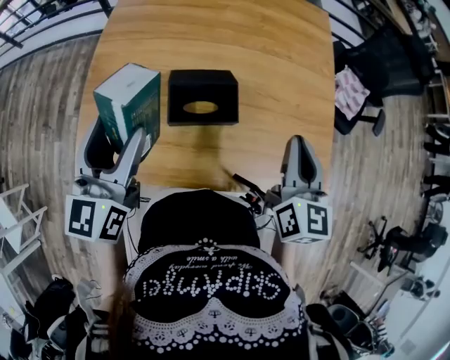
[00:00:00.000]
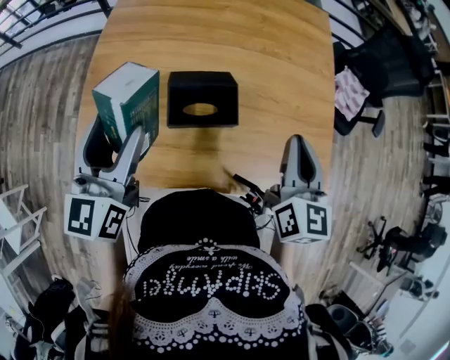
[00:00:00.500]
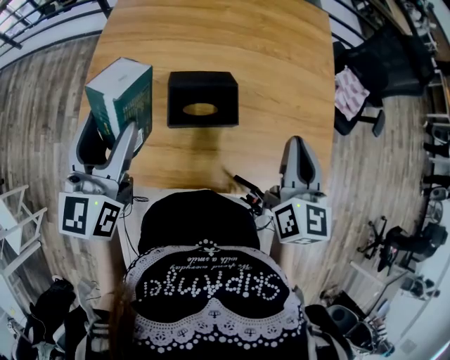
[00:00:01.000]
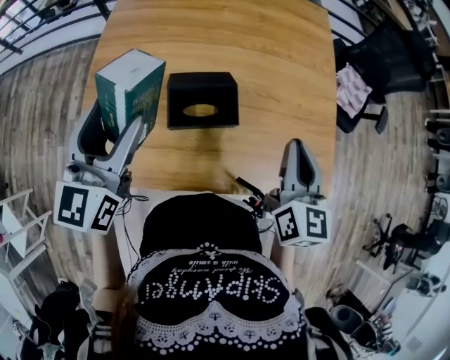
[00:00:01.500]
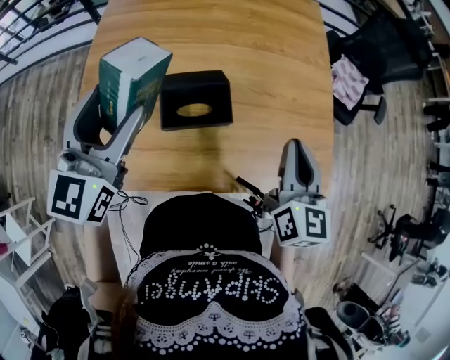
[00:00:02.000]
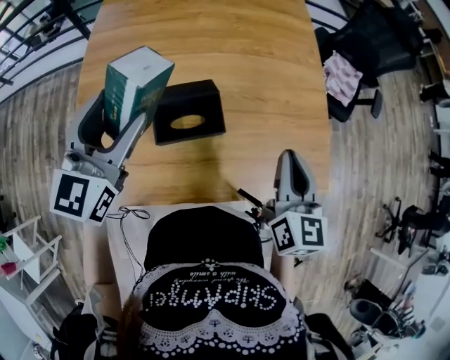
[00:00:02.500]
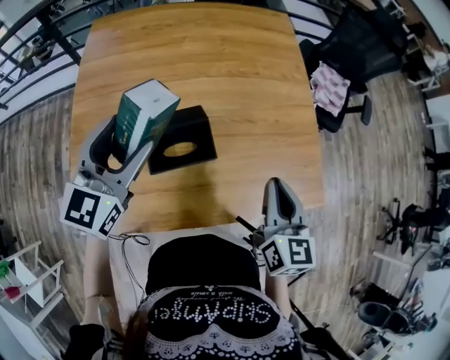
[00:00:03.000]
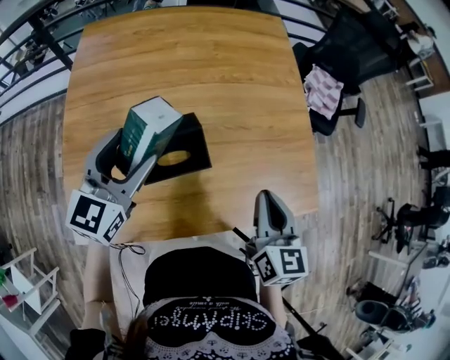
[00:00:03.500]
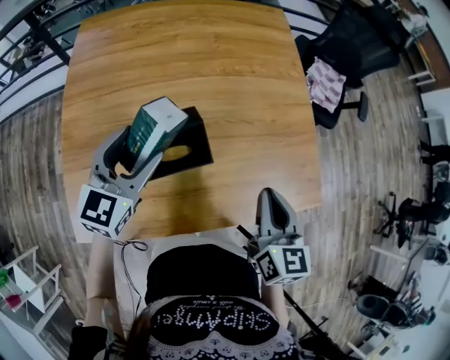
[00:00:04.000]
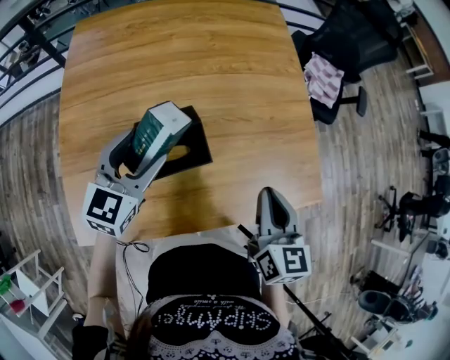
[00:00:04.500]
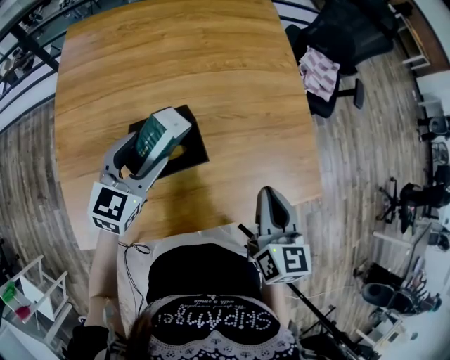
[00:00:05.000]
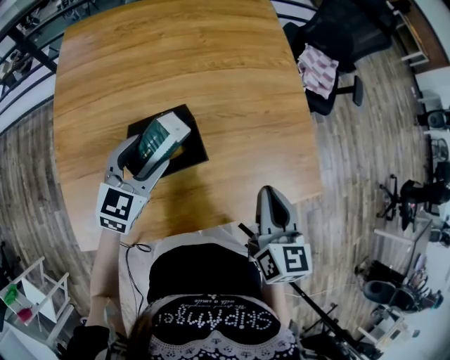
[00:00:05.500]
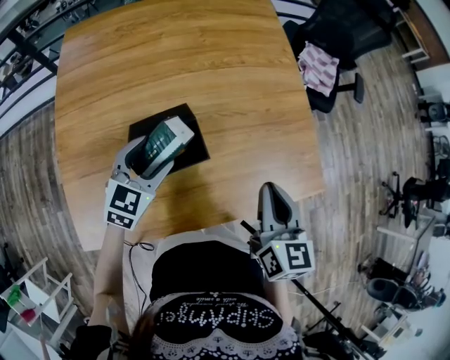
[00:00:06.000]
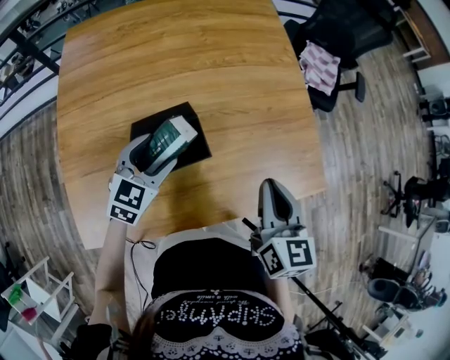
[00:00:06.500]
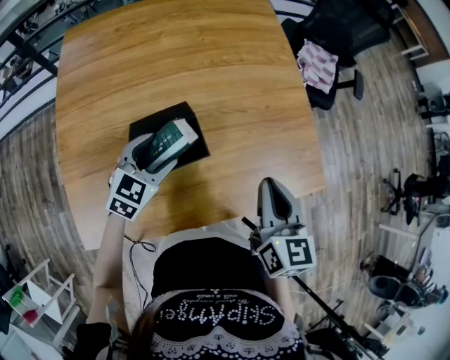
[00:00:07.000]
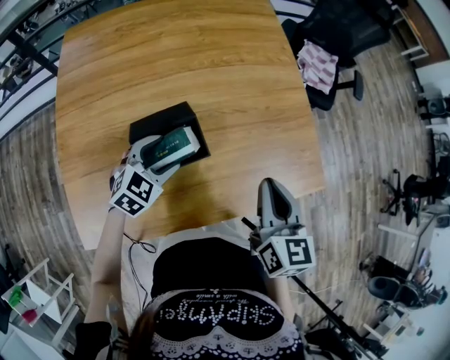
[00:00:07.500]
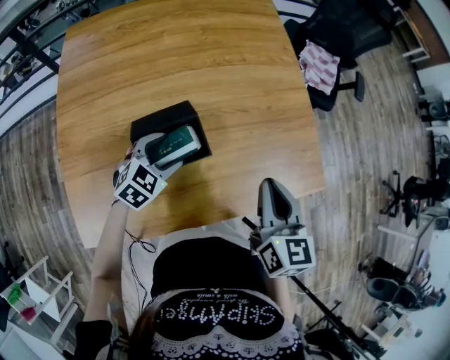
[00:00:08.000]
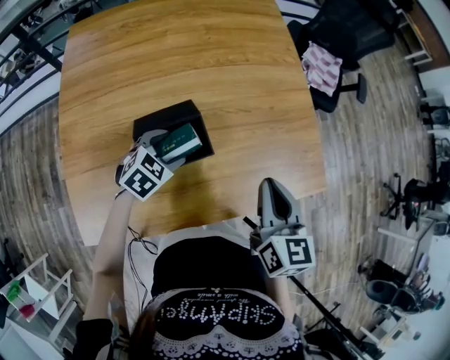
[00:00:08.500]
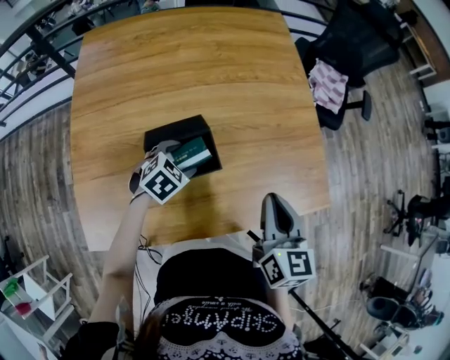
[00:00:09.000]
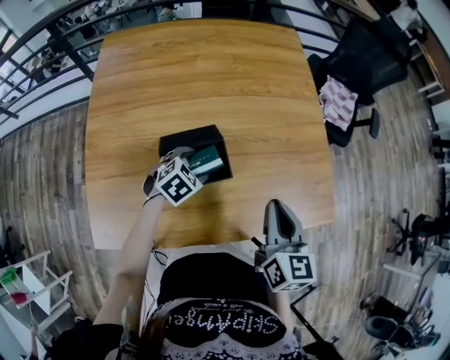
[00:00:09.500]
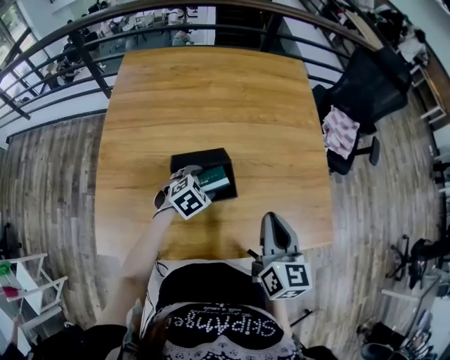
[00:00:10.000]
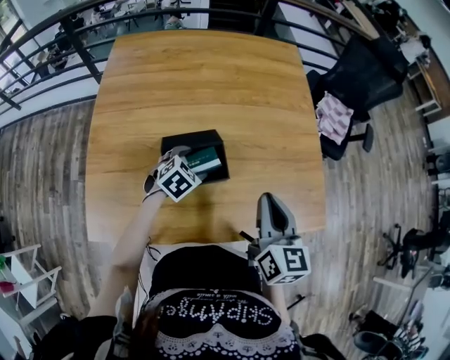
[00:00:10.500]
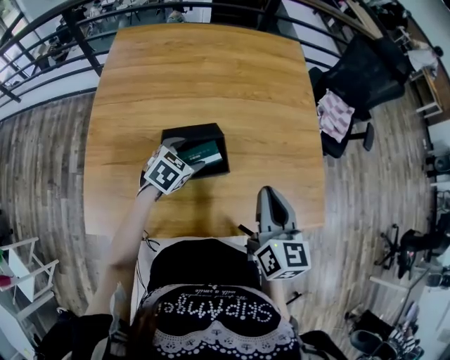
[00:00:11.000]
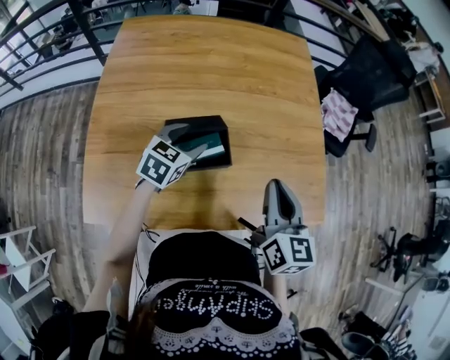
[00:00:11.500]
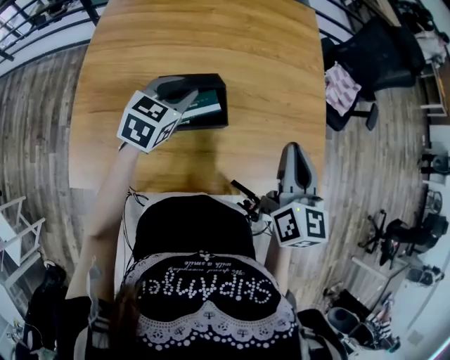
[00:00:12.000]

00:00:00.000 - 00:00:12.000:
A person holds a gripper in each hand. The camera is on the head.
00:00:00.000 - 00:00:02.000: The left gripper changes place by roughly 5 cm.
00:00:02.000 - 00:00:04.000: The left gripper goes some 15 cm downward, forward and to the right, while the right gripper shifts about 5 cm downward.
00:00:04.000 - 00:00:06.000: The left gripper heads downward, covering about 10 cm.
00:00:06.000 - 00:00:08.000: The left gripper is displaced downward by about 5 cm.
00:00:08.000 - 00:00:10.000: The grippers make only small movements.
00:00:10.000 - 00:00:12.000: The left gripper goes some 15 cm upward, rotates about 30 degrees, and closes. The right gripper ends up some 5 cm from where it was.

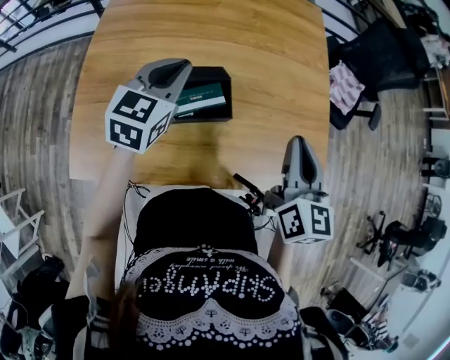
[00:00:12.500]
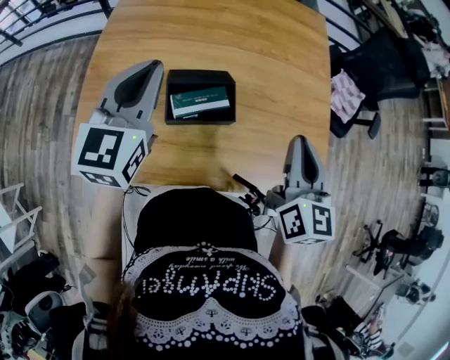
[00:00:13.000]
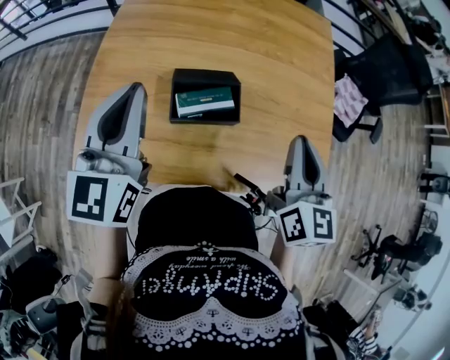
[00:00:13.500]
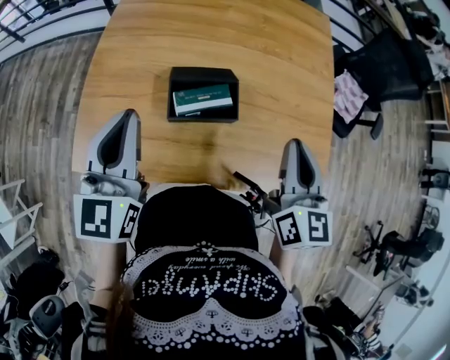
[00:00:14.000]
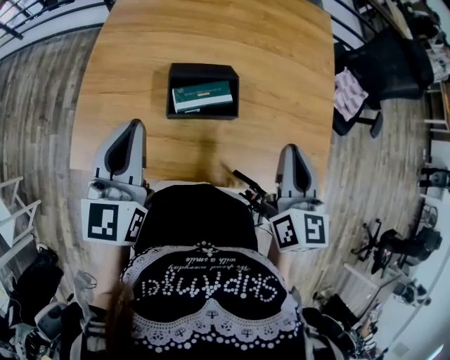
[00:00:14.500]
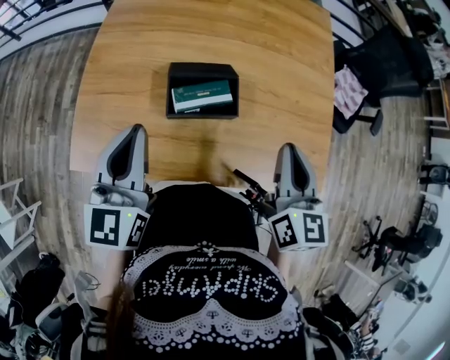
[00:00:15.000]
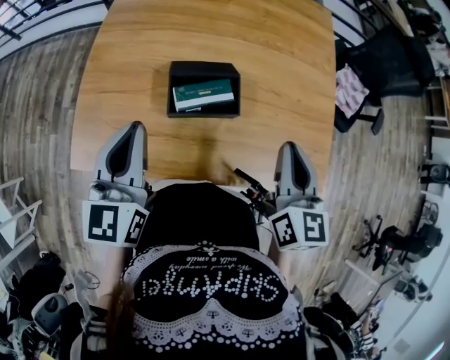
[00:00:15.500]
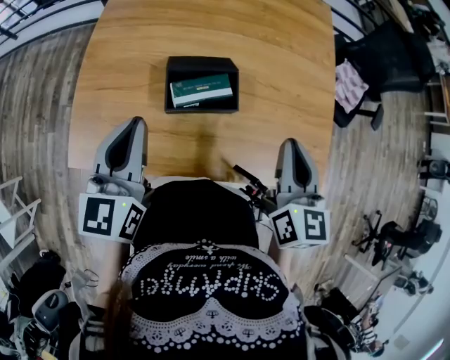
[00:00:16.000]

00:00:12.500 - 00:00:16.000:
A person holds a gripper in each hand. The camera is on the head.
00:00:12.500 - 00:00:14.500: The left gripper goes approximately 15 cm backward and to the left, and rotates some 30 degrees.
00:00:14.500 - 00:00:16.000: The grippers stay close to where they were, moving slightly.

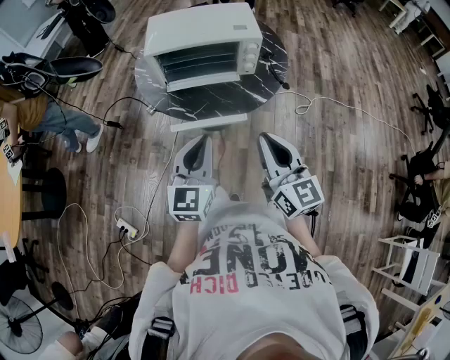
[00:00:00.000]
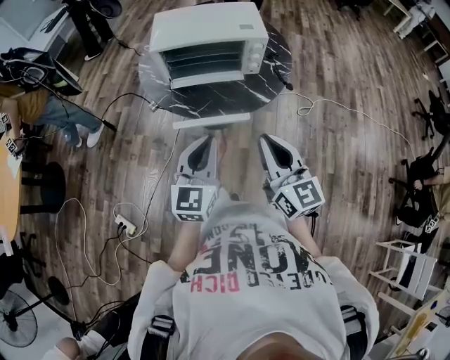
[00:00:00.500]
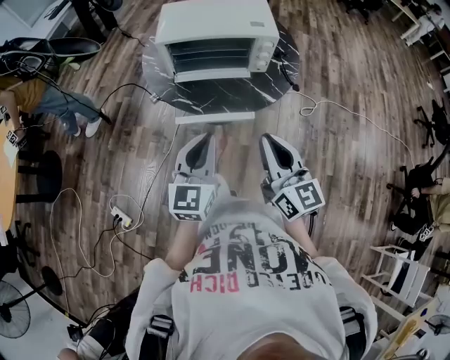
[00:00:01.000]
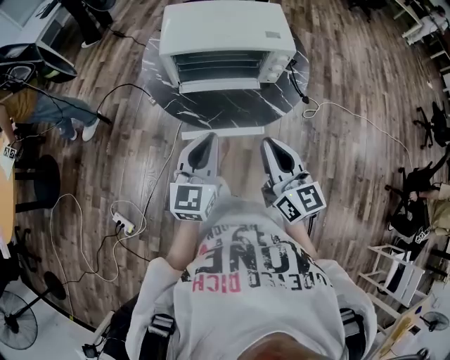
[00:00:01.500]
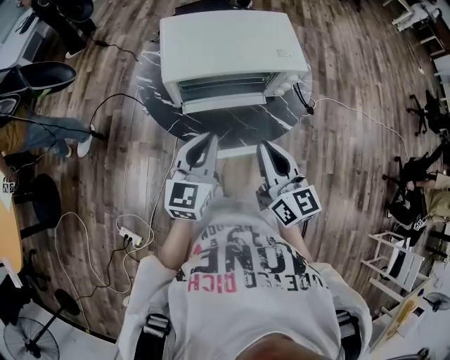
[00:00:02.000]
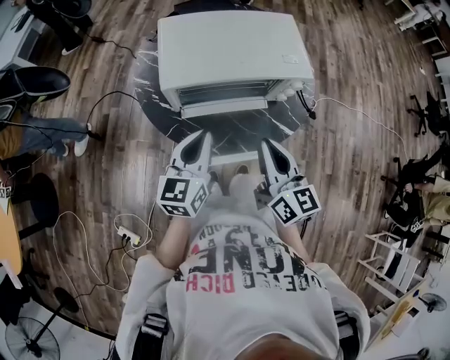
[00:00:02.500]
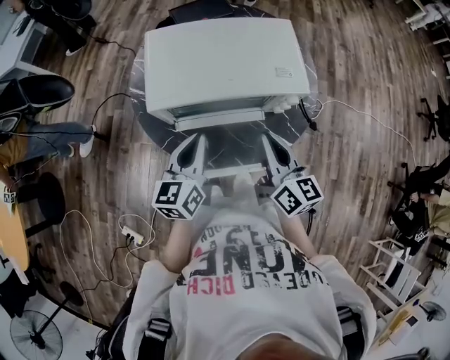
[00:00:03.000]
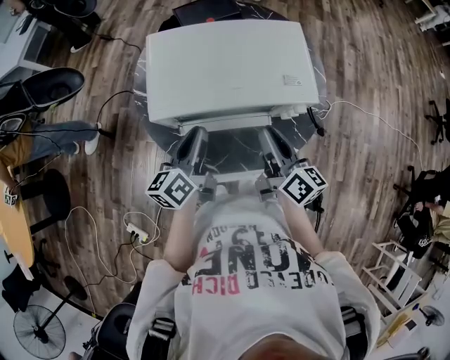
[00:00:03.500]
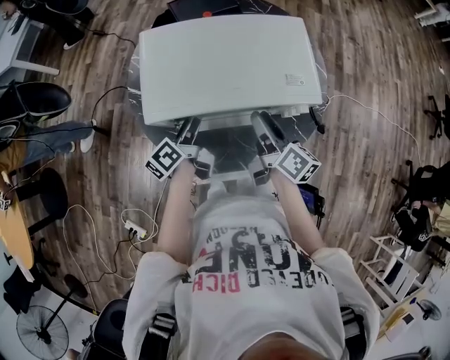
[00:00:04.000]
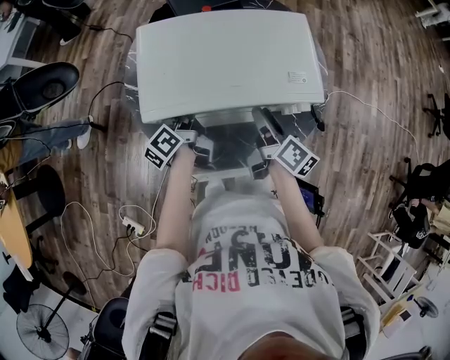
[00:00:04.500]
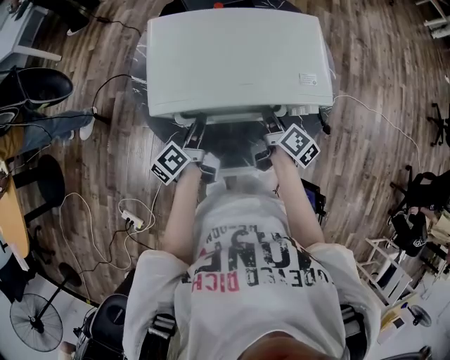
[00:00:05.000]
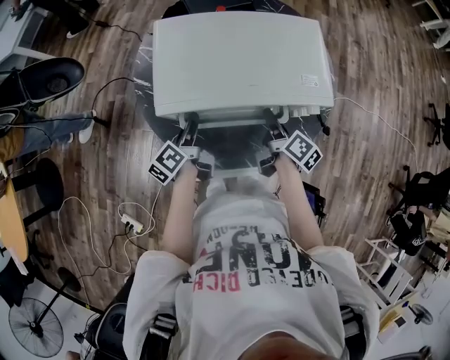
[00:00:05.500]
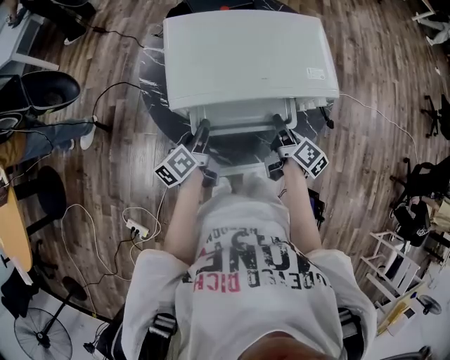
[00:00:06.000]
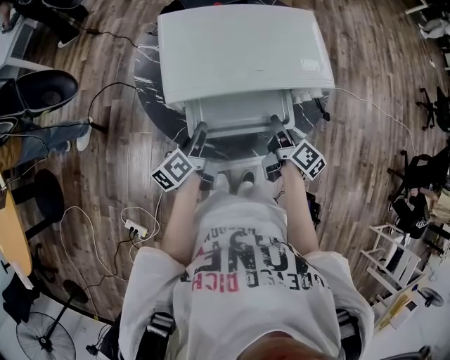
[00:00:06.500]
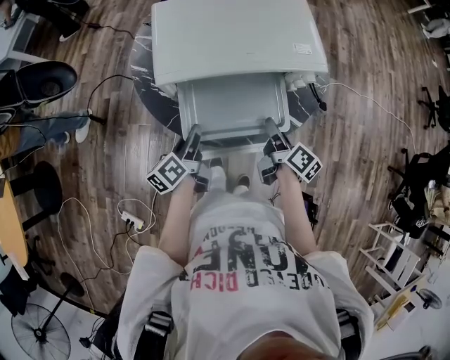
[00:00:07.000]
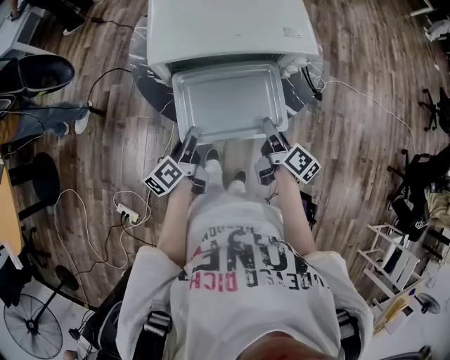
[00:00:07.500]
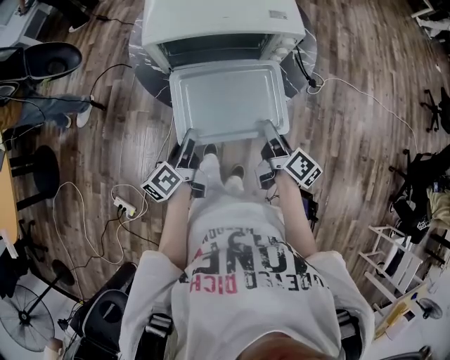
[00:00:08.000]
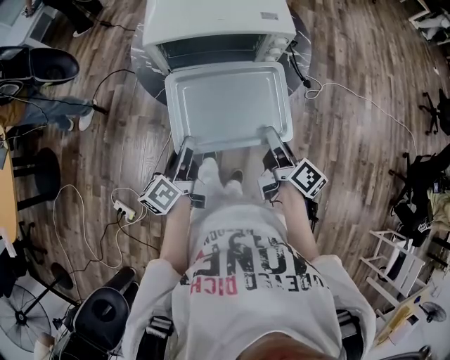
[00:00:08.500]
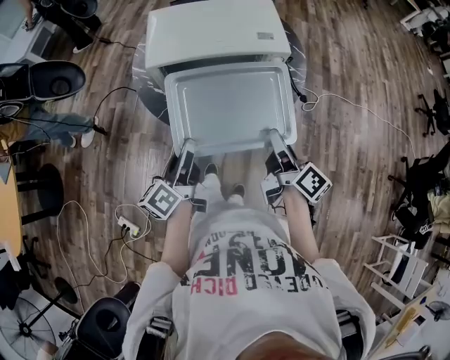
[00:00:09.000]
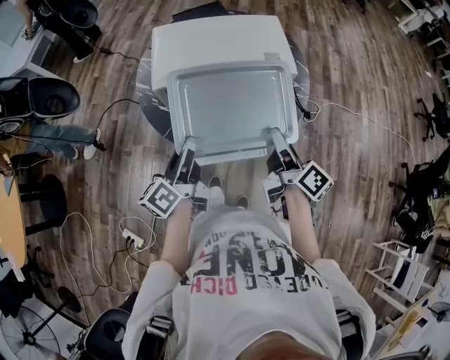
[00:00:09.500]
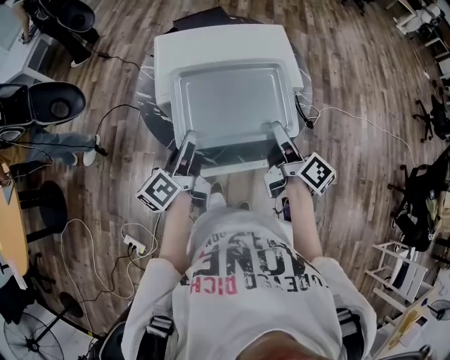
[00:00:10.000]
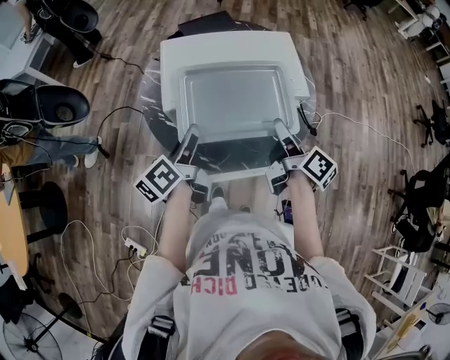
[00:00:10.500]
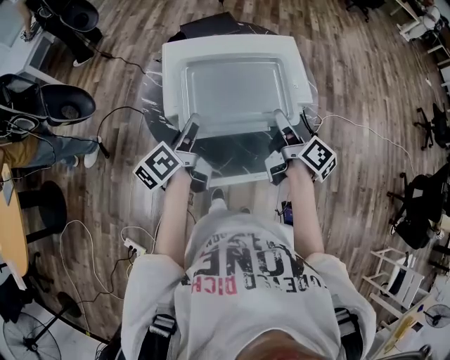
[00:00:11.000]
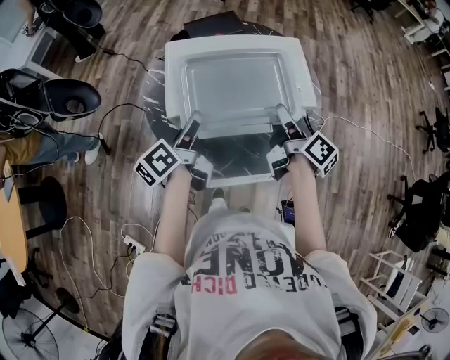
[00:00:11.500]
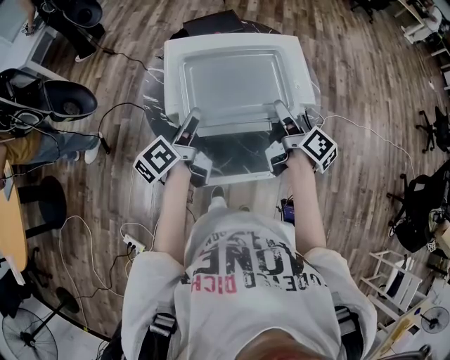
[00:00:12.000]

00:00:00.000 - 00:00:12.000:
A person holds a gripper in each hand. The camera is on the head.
00:00:00.000 - 00:00:02.000: The two grippers go roughly 20 cm forward and to the left.
00:00:02.000 - 00:00:04.000: Both grippers travel together forward and downward, approximately 25 cm. The right gripper swivels some 40 degrees, and opens up. The left gripper rotates around the line of its fingers by some 60 degrees, counterclockwise from behind, and opens.
00:00:04.000 - 00:00:06.000: The left gripper is displaced backward by approximately 5 cm, and closes its fingers, while the right gripper moves downward, some 10 cm.
00:00:06.000 - 00:00:08.000: The two grippers go about 20 cm backward.
00:00:08.000 - 00:00:10.000: Both grippers move forward and upward, some 15 cm.
00:00:10.000 - 00:00:12.000: Both grippers move forward, about 10 cm.
